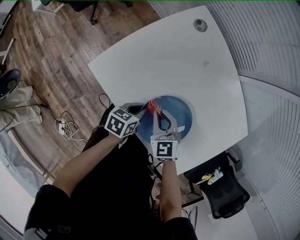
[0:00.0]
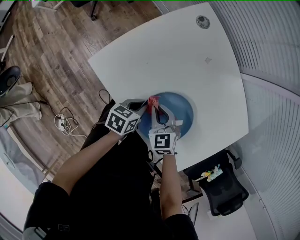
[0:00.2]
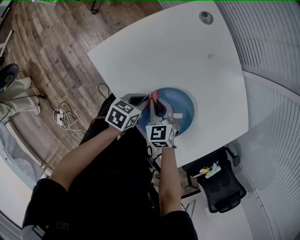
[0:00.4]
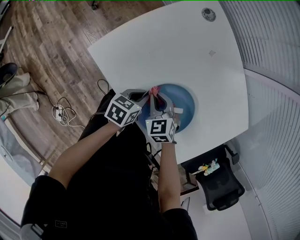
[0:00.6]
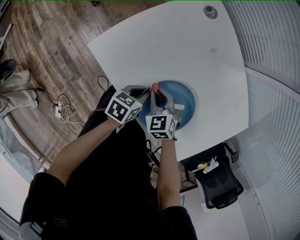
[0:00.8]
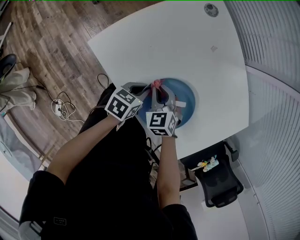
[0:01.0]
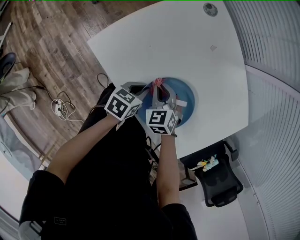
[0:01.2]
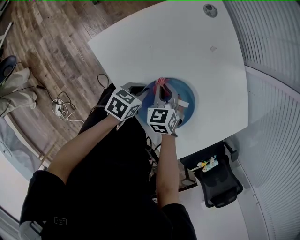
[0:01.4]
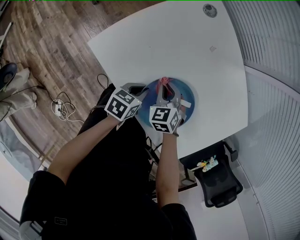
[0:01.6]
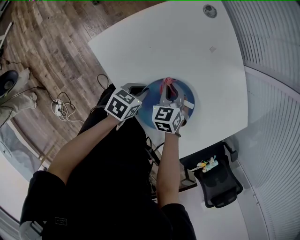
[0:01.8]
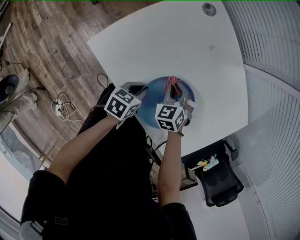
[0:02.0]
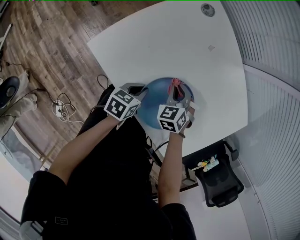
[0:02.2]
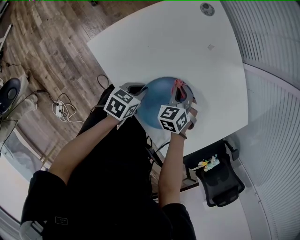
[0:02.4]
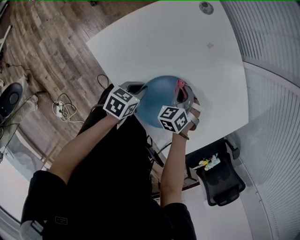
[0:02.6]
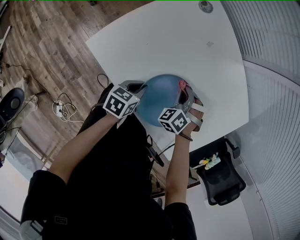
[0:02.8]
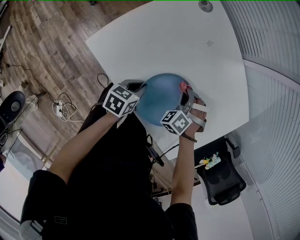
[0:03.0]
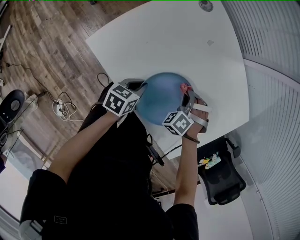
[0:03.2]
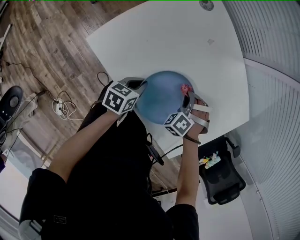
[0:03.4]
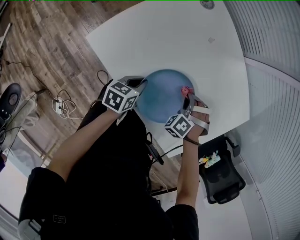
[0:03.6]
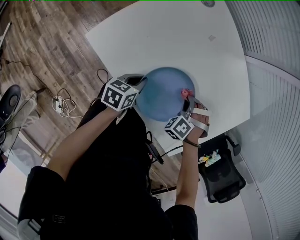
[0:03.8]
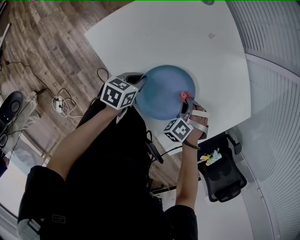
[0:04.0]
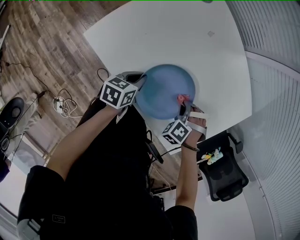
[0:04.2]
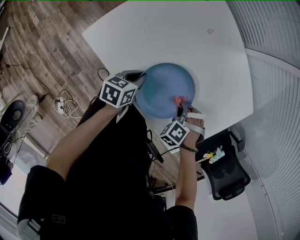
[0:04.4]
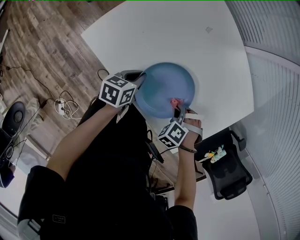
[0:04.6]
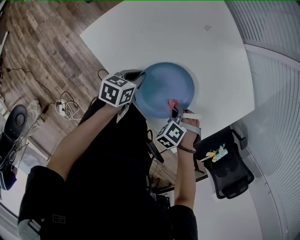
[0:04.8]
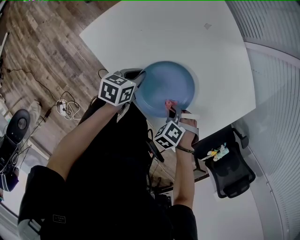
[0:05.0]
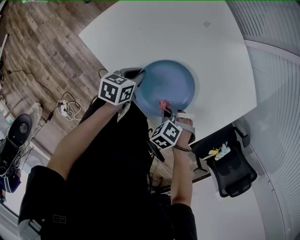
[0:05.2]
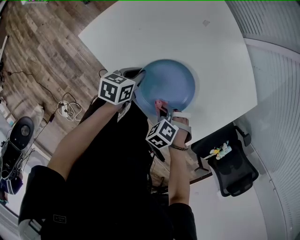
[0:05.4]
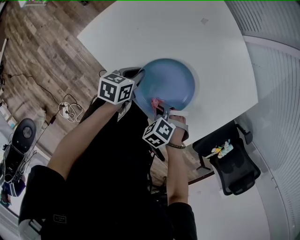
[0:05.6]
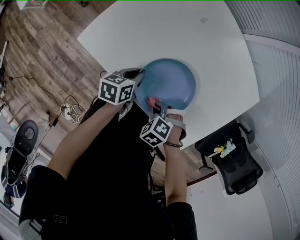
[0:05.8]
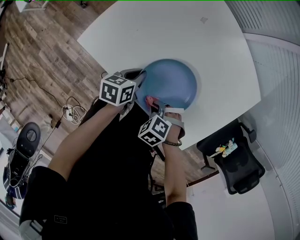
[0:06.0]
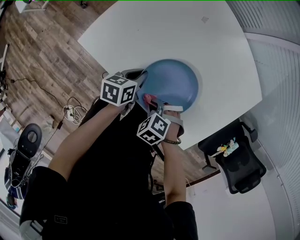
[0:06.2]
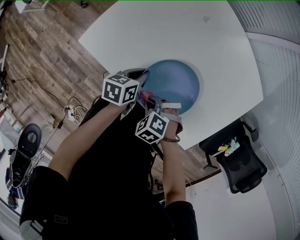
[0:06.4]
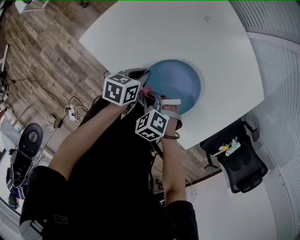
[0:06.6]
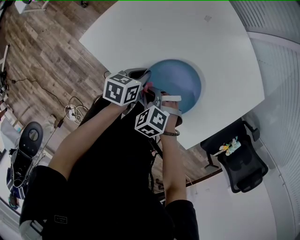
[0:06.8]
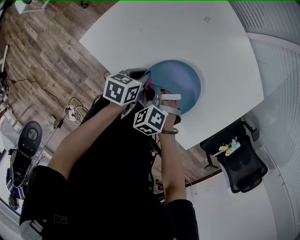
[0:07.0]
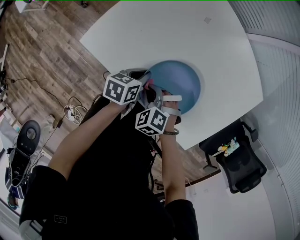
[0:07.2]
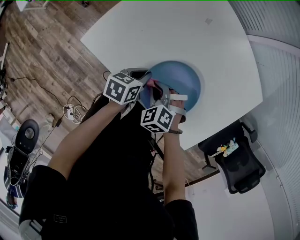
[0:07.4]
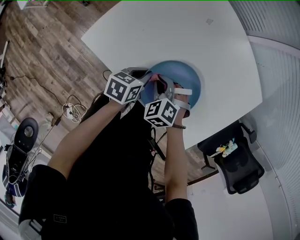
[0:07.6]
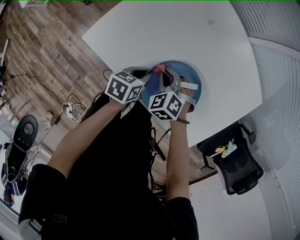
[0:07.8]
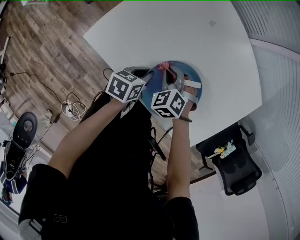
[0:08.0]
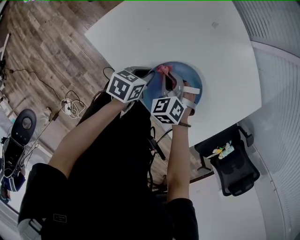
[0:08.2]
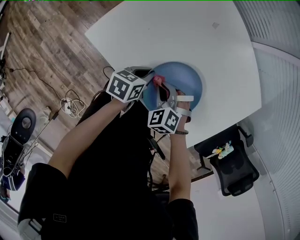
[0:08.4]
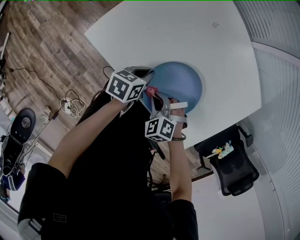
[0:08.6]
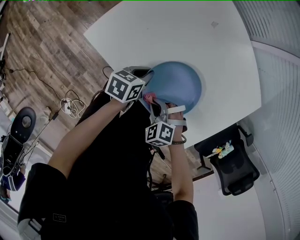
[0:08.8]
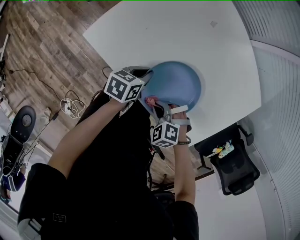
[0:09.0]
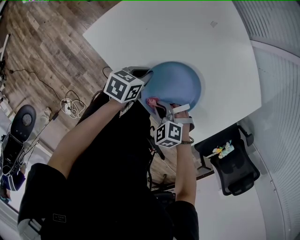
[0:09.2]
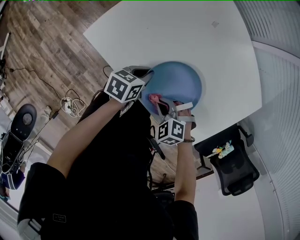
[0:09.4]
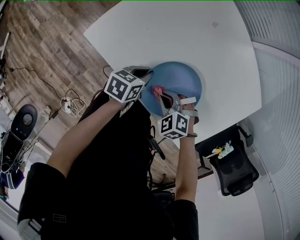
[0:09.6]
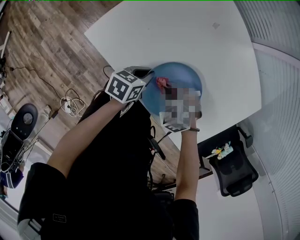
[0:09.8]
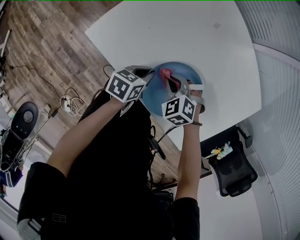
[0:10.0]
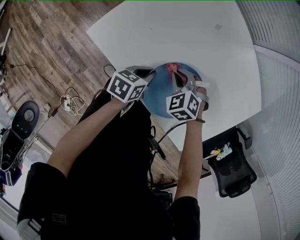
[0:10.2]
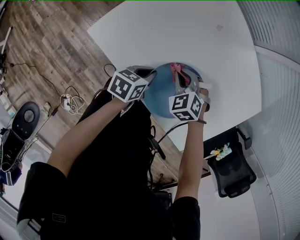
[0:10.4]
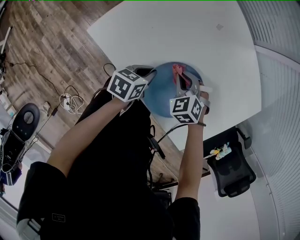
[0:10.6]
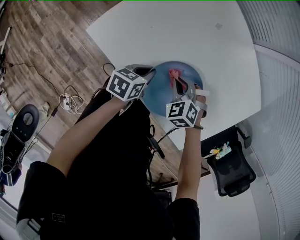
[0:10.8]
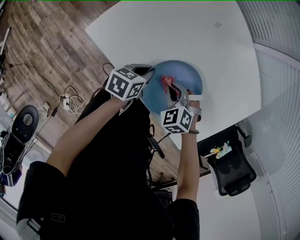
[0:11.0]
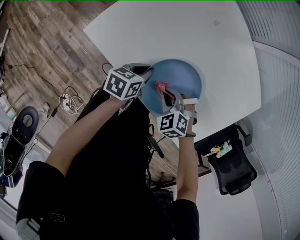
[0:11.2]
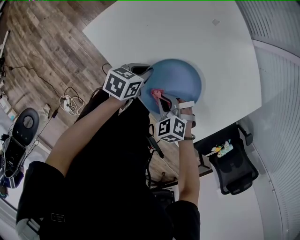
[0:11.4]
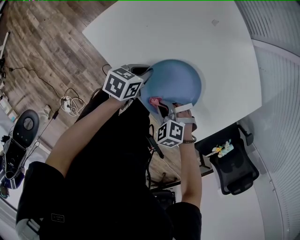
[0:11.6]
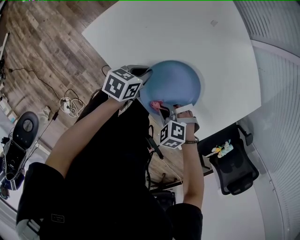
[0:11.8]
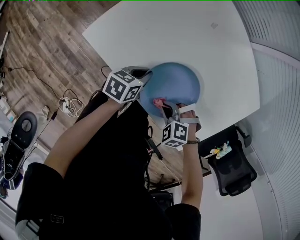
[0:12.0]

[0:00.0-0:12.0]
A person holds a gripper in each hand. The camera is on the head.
0.0 to 1.6 s: The right gripper travels downward by about 5 cm, and changes its angle by roughly 20 degrees.
1.6 to 3.0 s: The right gripper goes roughly 10 cm to the right, and swivels approximately 40 degrees.
3.0 to 4.4 s: The right gripper changes place by some 10 cm.
4.4 to 6.0 s: The right gripper moves approximately 15 cm, and rotates about 30 degrees.
6.0 to 7.6 s: The right gripper shifts by roughly 15 cm, and changes its angle by approximately 20 degrees.
7.6 to 9.0 s: The right gripper ends up approximately 10 cm from where it was, and rotates about 20 degrees.
9.0 to 10.4 s: The right gripper ends up approximately 20 cm from where it was.
10.4 to 12.0 s: The right gripper ends up roughly 15 cm from where it was, and rotates about 30 degrees.

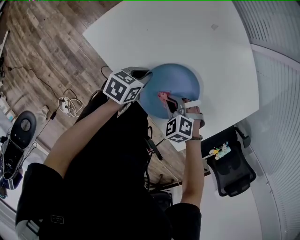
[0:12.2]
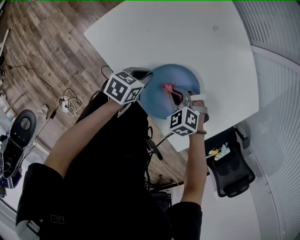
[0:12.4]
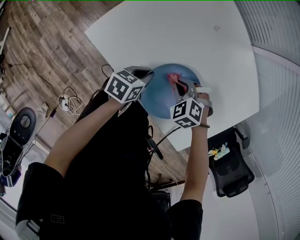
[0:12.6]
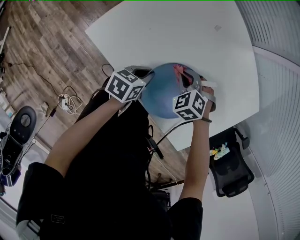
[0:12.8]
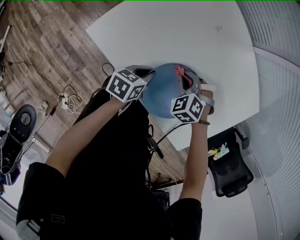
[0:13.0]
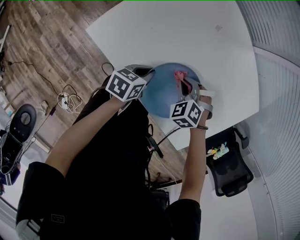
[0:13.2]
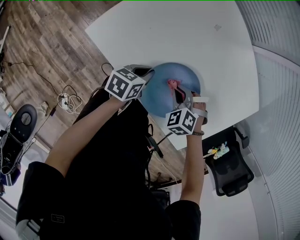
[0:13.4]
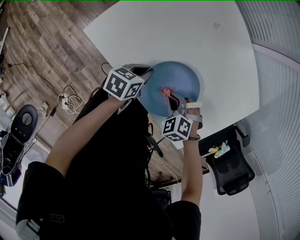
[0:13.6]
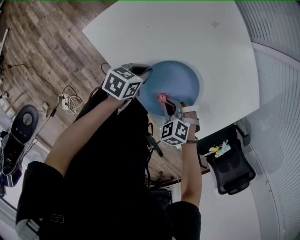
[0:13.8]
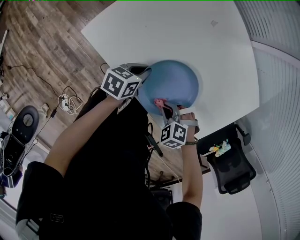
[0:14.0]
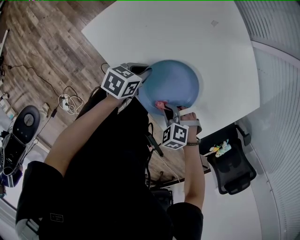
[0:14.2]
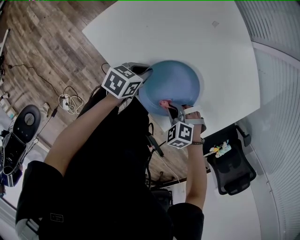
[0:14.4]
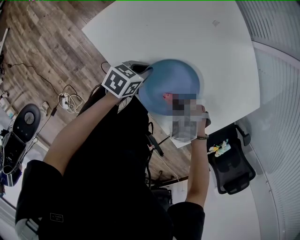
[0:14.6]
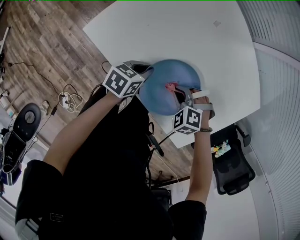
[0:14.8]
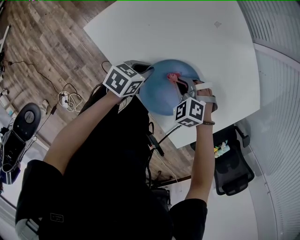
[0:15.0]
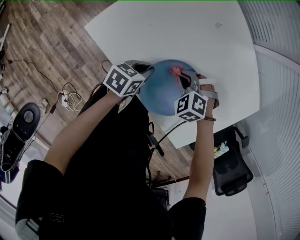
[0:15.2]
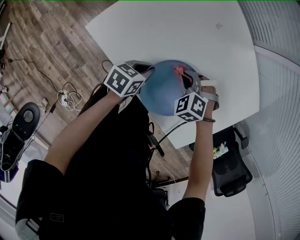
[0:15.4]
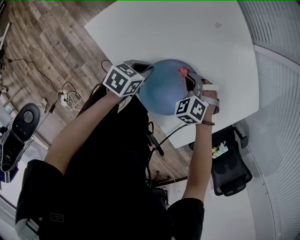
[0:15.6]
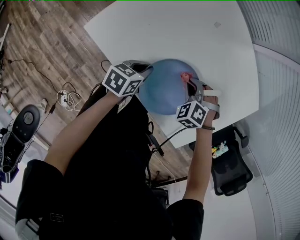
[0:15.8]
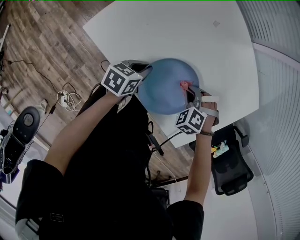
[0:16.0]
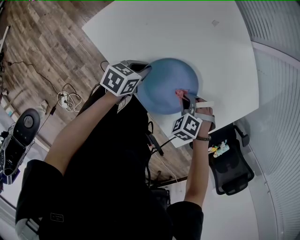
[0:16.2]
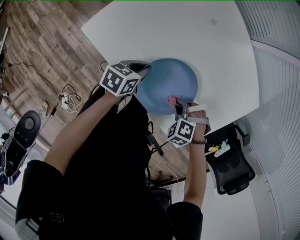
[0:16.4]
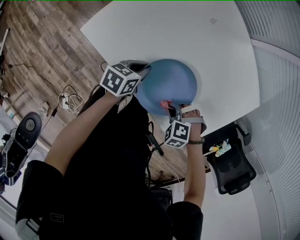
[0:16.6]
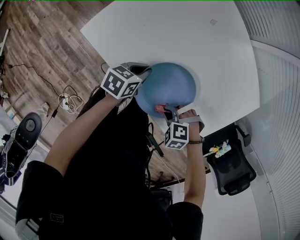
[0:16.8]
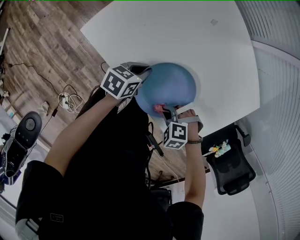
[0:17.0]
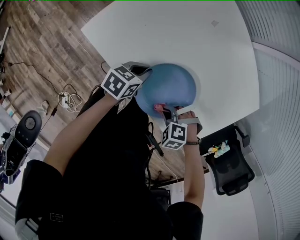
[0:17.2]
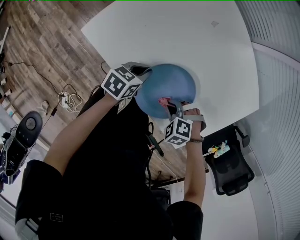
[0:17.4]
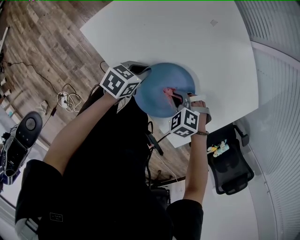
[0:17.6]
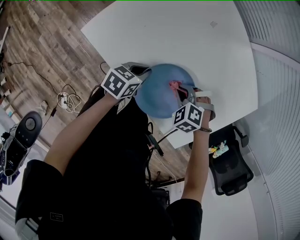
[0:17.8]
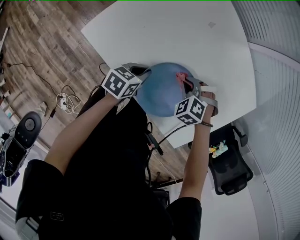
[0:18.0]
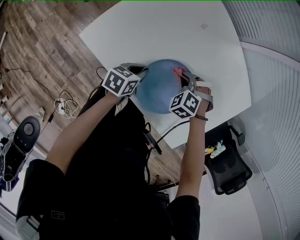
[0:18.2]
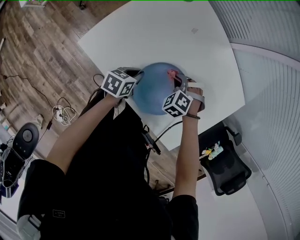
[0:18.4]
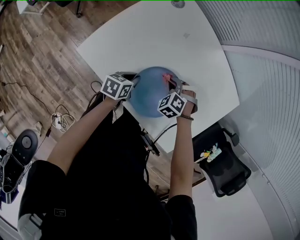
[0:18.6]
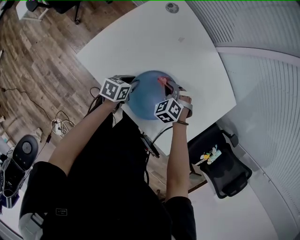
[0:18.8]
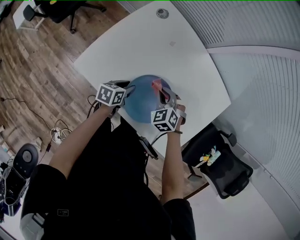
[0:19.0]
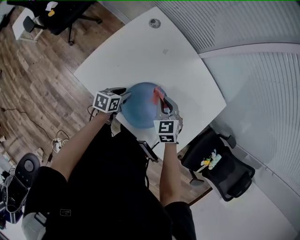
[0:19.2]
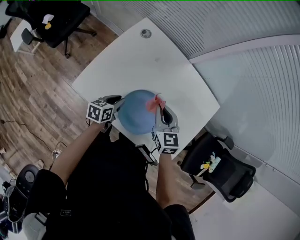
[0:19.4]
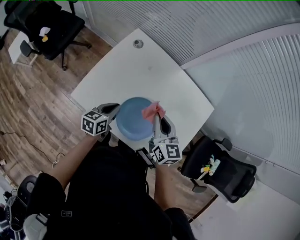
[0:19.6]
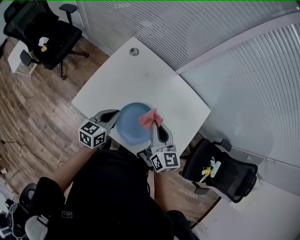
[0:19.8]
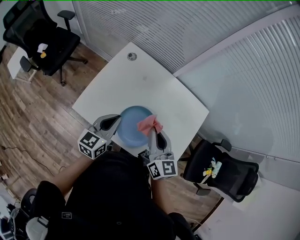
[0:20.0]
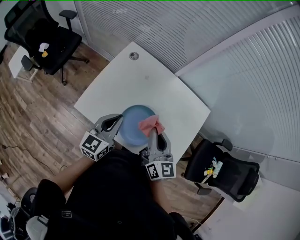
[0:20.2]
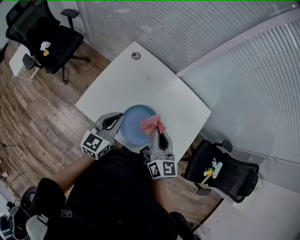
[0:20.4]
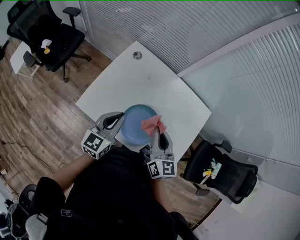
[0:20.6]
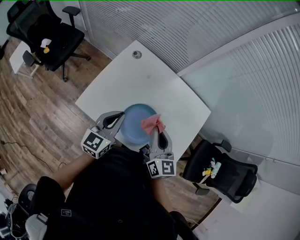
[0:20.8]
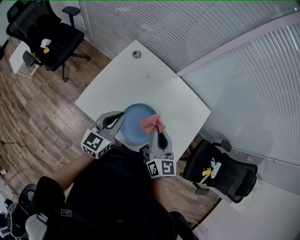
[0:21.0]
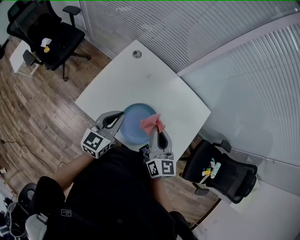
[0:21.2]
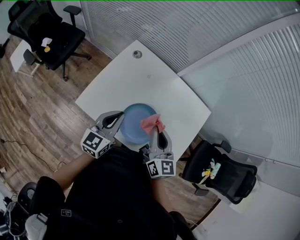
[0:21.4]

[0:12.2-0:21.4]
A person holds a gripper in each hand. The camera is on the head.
13.8 to 15.2 s: The right gripper changes place by about 15 cm.
15.2 to 16.8 s: The right gripper moves roughly 20 cm, and turns by approximately 20 degrees.
16.8 to 18.4 s: The right gripper moves some 20 cm, and changes its angle by approximately 30 degrees.
18.4 to 19.8 s: Both grippers travel together upward, some 25 cm. The right gripper tips its fingers upward by some 60 degrees; the left gripper swivels approximately 30 degrees, and opens, then closes again.
19.8 to 21.4 s: The left gripper goes roughly 5 cm upward.

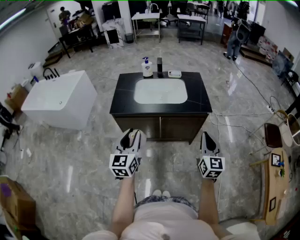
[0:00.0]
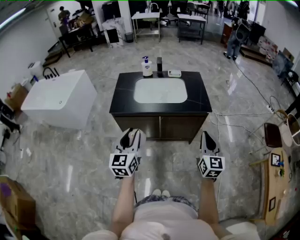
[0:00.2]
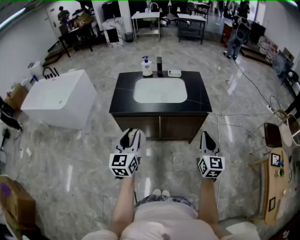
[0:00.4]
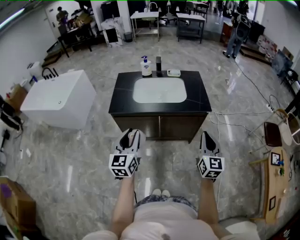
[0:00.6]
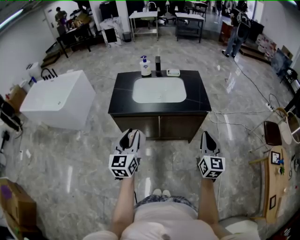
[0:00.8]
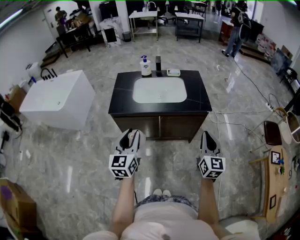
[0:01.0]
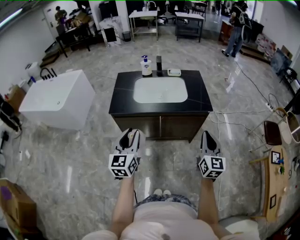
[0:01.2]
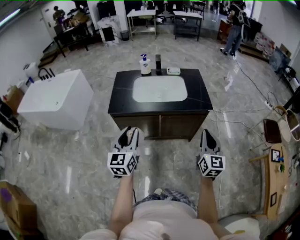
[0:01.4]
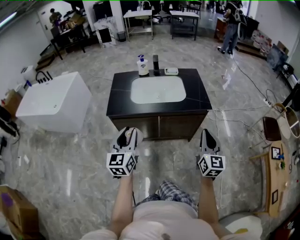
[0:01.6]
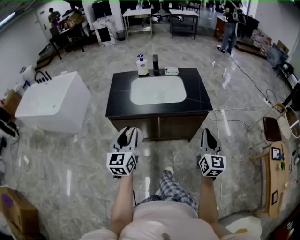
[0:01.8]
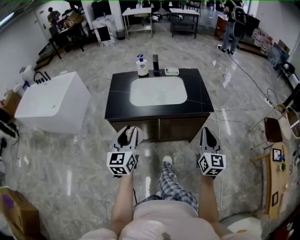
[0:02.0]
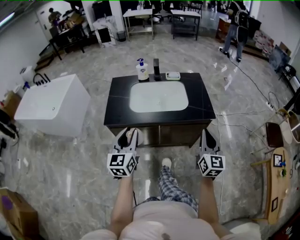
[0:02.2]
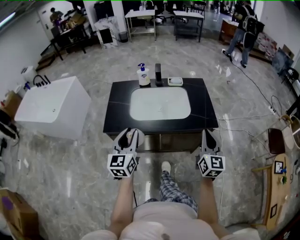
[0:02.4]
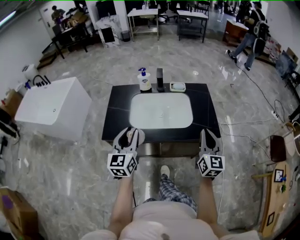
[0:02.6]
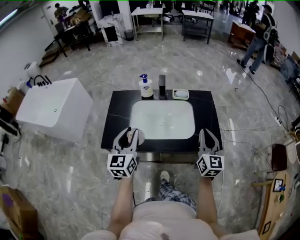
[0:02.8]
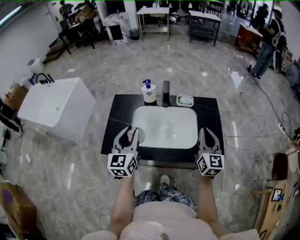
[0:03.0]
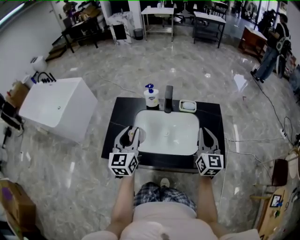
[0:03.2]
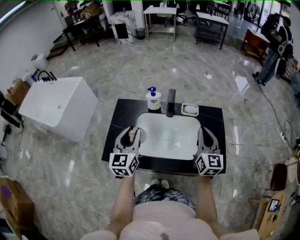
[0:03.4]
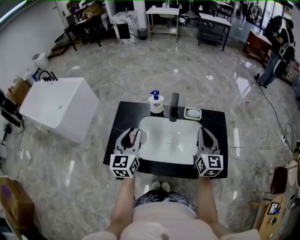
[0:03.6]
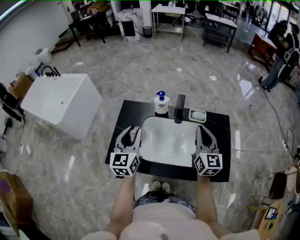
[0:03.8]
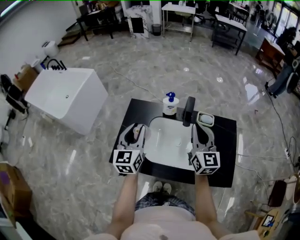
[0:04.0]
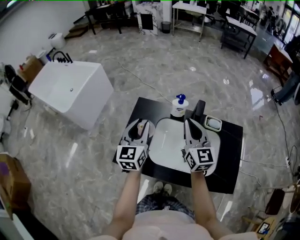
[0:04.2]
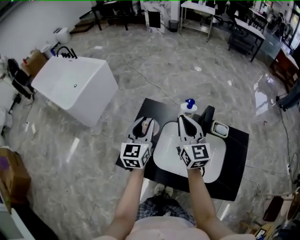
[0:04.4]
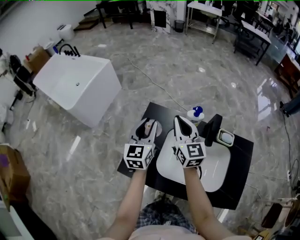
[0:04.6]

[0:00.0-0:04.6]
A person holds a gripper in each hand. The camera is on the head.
0.0 to 1.6 s: The left gripper ends up about 5 cm from where it was.
1.6 to 3.0 s: The two grippers travel together, forward, about 40 cm.
3.0 to 4.6 s: The left gripper heads forward and to the left, covering about 30 cm. The right gripper heads to the left and forward, covering approximately 50 cm, and turns by approximately 30 degrees.
